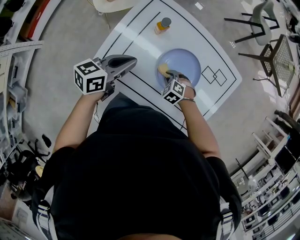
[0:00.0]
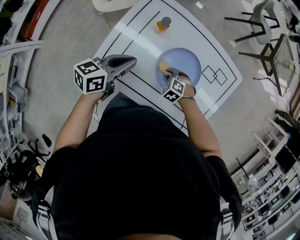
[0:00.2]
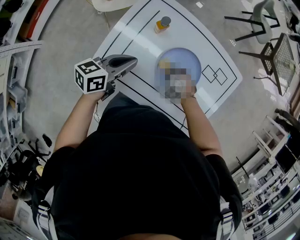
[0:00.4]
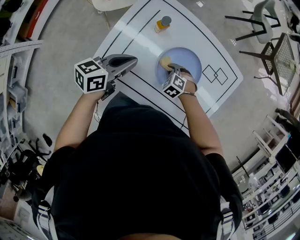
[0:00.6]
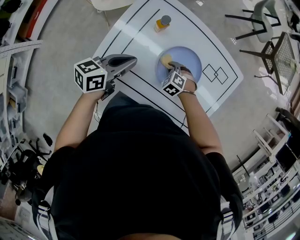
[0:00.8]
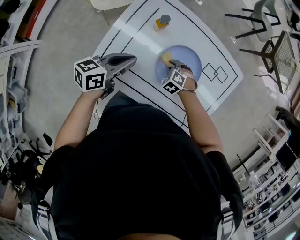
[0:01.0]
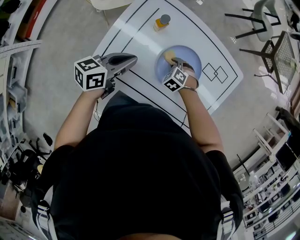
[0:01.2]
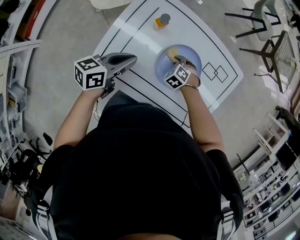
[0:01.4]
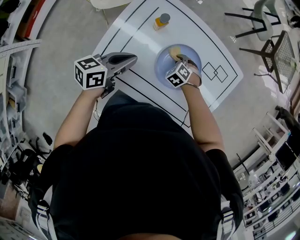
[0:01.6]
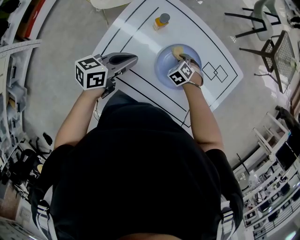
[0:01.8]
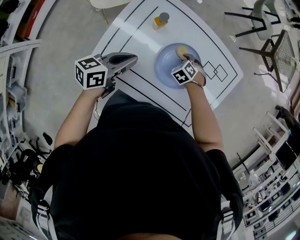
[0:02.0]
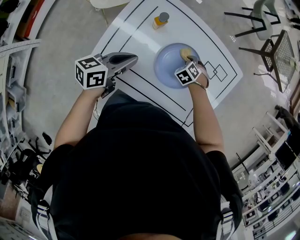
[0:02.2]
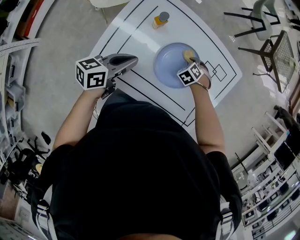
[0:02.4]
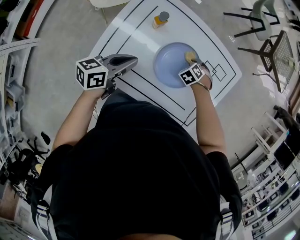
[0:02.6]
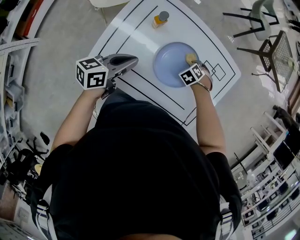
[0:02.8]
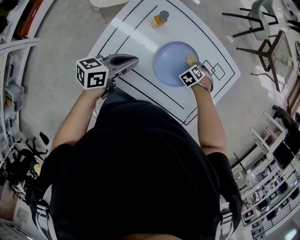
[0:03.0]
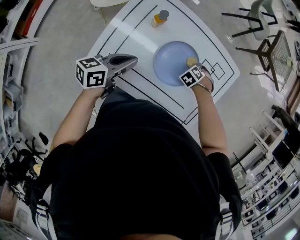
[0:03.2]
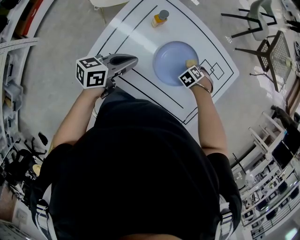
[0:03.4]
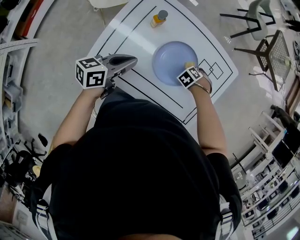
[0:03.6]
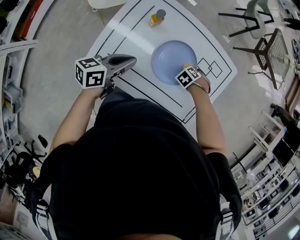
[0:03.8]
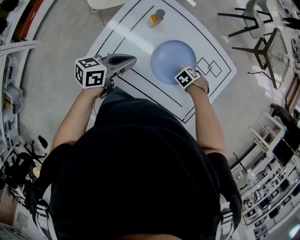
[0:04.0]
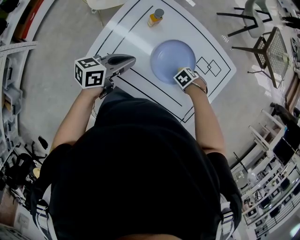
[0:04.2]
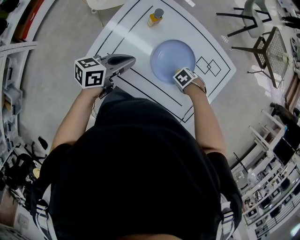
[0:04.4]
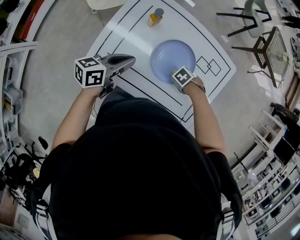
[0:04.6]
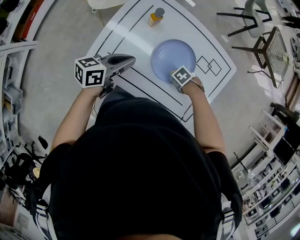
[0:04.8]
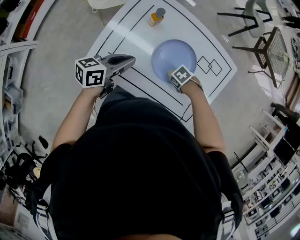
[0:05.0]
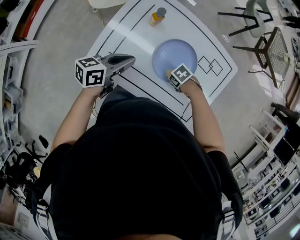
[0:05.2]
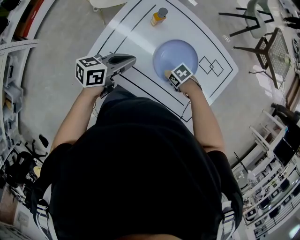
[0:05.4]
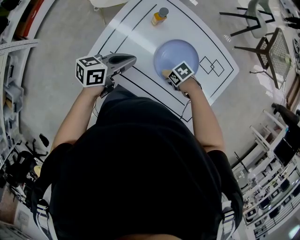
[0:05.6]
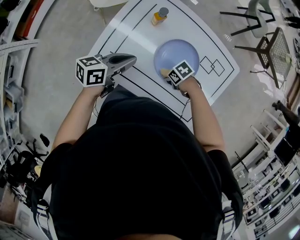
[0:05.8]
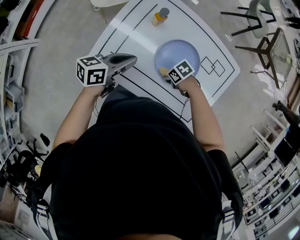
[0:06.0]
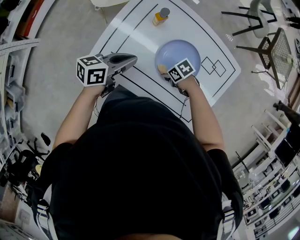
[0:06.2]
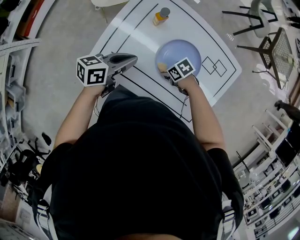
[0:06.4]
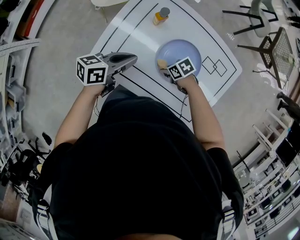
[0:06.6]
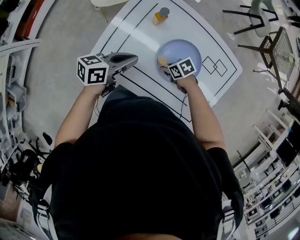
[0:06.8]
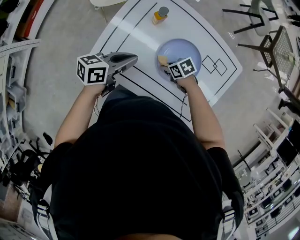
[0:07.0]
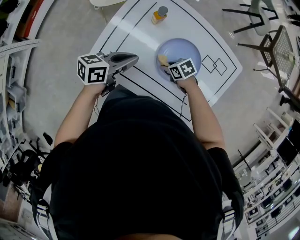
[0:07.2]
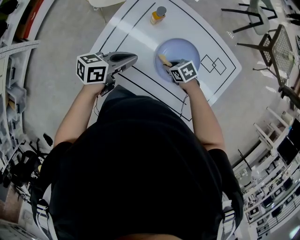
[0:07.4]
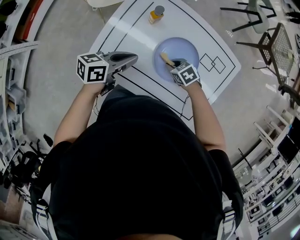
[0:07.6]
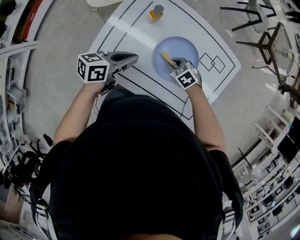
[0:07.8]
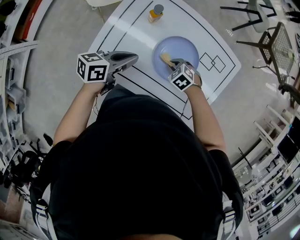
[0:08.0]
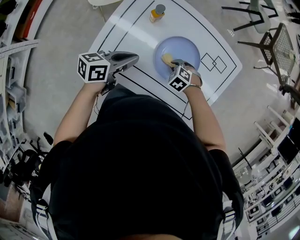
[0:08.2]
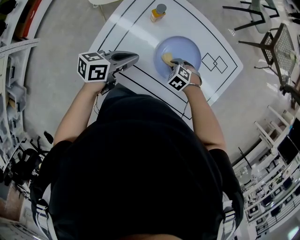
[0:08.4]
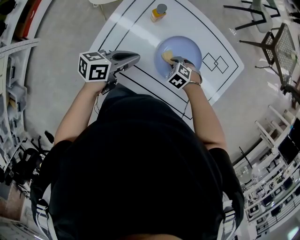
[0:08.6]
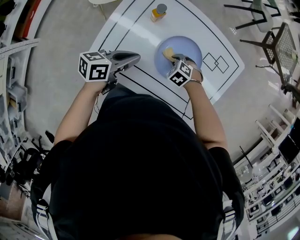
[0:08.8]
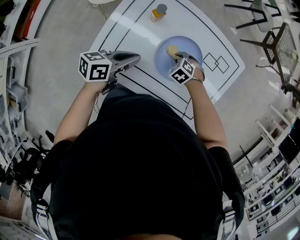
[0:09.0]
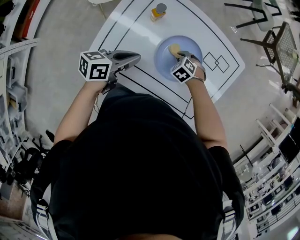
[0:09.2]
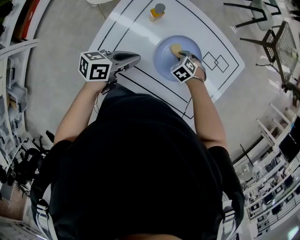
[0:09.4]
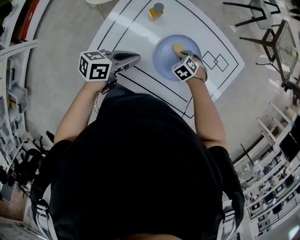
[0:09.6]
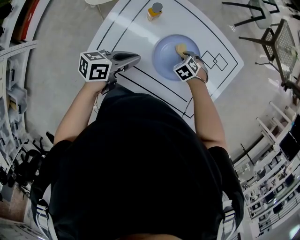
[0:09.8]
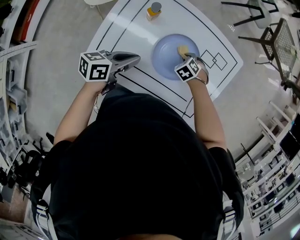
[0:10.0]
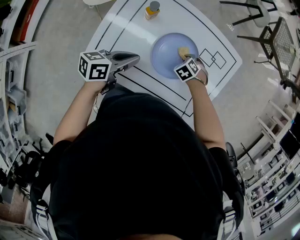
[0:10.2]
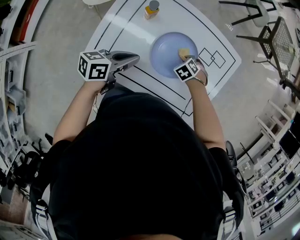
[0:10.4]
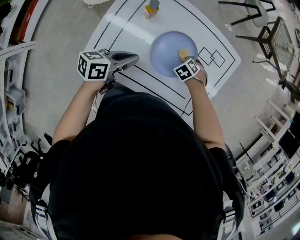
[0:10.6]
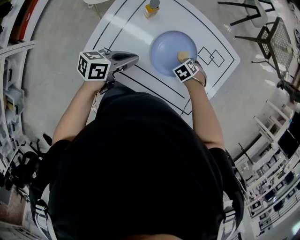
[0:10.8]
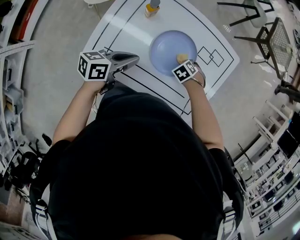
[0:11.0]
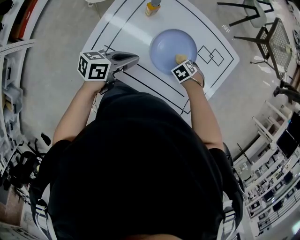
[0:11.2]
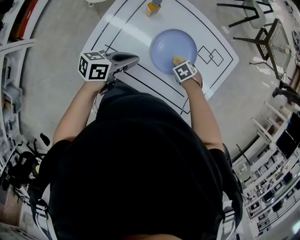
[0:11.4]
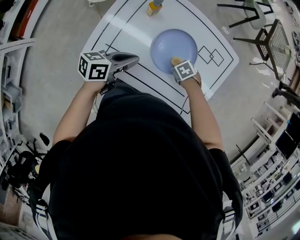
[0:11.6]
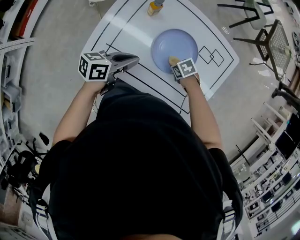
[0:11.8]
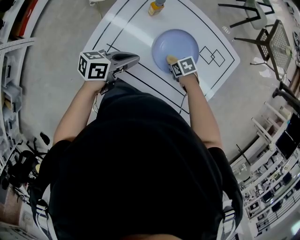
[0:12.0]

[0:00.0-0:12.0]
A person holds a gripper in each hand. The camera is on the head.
0:00.0 to 0:01.6: The right gripper shifts by roughly 10 cm.
0:01.6 to 0:03.0: The right gripper changes place by approximately 10 cm.
0:03.0 to 0:04.4: The right gripper ends up roughly 10 cm from where it was, and rotates approximately 20 degrees.
0:04.4 to 0:06.0: The right gripper ends up roughly 10 cm from where it was, and turns by roughly 30 degrees.
0:06.0 to 0:07.6: The right gripper ends up roughly 10 cm from where it was, and swivels roughly 30 degrees.
0:07.6 to 0:09.0: The right gripper shifts by some 5 cm, and changes its angle by roughly 30 degrees.
0:09.0 to 0:10.4: The right gripper changes place by roughly 10 cm.
0:10.4 to 0:12.0: The right gripper moves approximately 10 cm, and turns by some 40 degrees.

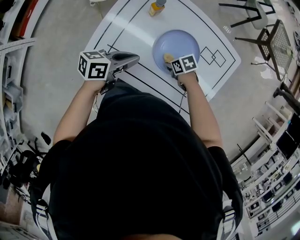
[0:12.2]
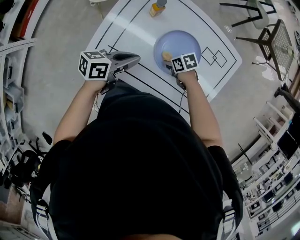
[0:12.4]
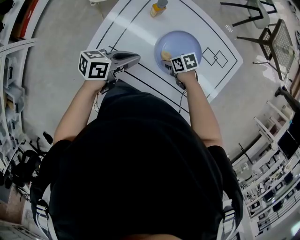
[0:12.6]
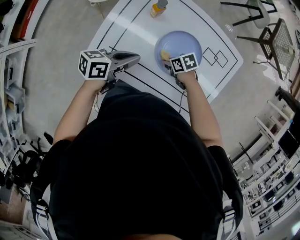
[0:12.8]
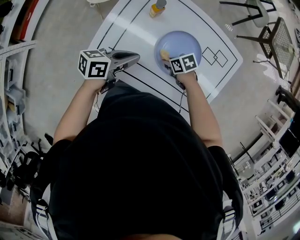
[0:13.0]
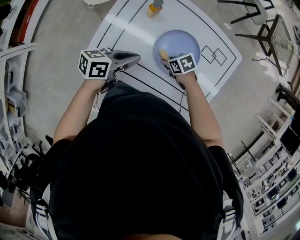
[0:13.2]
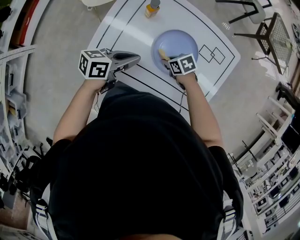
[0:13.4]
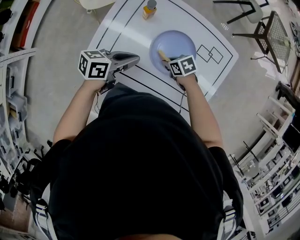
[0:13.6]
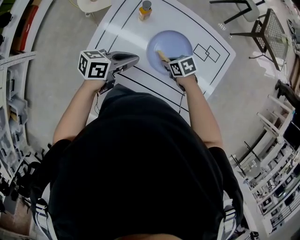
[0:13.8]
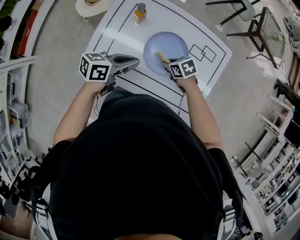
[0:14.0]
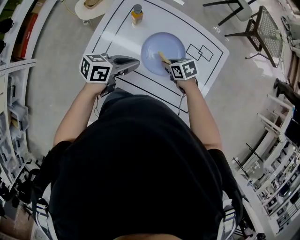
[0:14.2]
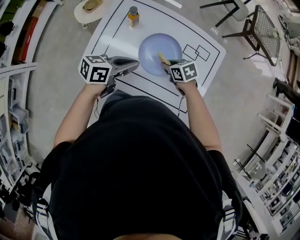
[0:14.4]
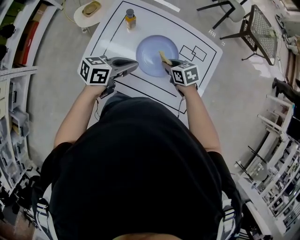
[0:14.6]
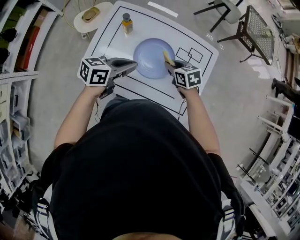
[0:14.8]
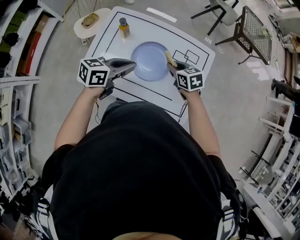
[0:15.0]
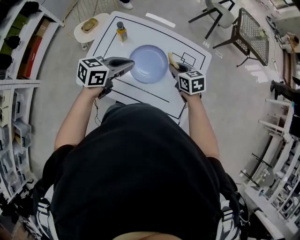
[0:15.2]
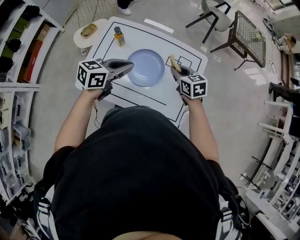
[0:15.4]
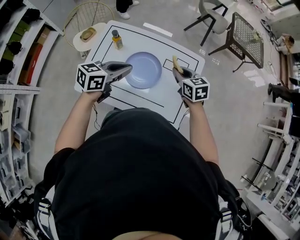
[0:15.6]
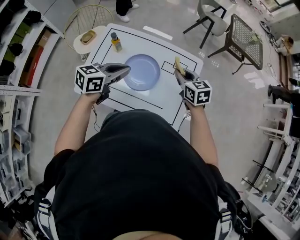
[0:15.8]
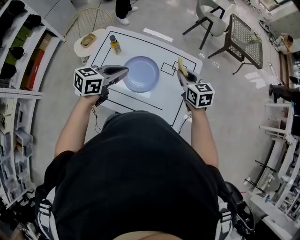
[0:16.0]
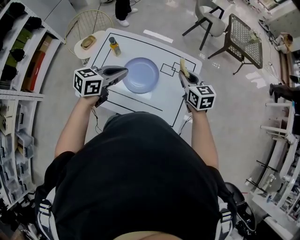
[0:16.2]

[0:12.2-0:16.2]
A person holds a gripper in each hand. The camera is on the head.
0:12.2 to 0:13.6: The grippers move only a little.
0:13.6 to 0:14.8: The right gripper is displaced upward by about 15 cm, and changes its angle by roughly 30 degrees. The left gripper shifts by about 10 cm.
0:14.8 to 0:16.2: The left gripper goes about 10 cm upward. Meanwhile the right gripper is displaced upward and to the right by about 20 cm, and turns by about 30 degrees.

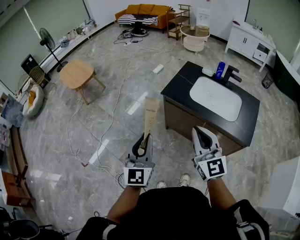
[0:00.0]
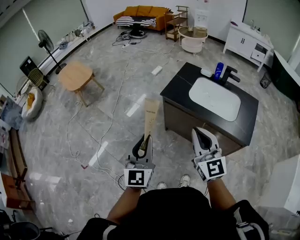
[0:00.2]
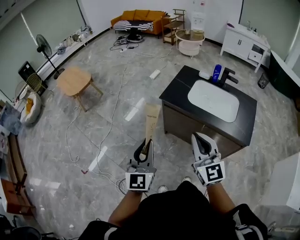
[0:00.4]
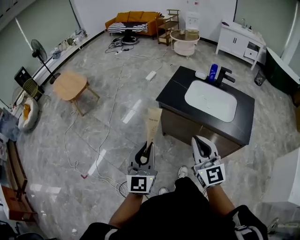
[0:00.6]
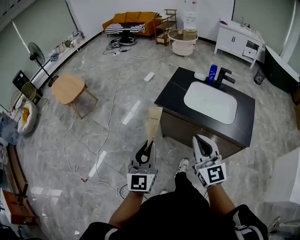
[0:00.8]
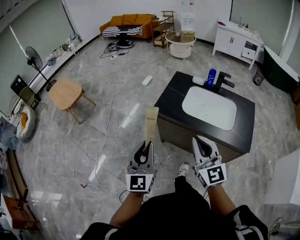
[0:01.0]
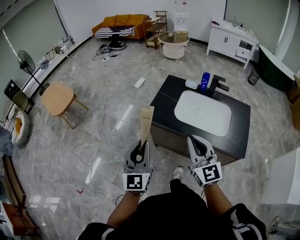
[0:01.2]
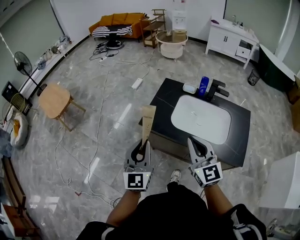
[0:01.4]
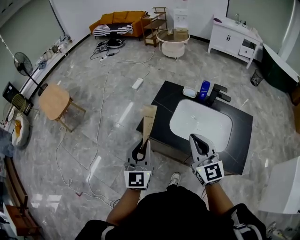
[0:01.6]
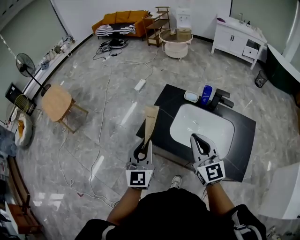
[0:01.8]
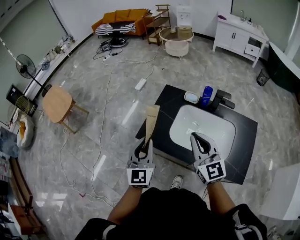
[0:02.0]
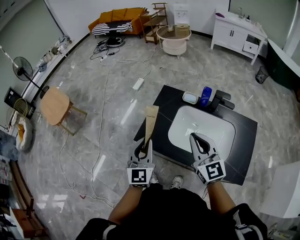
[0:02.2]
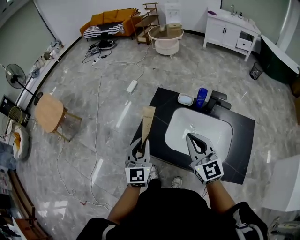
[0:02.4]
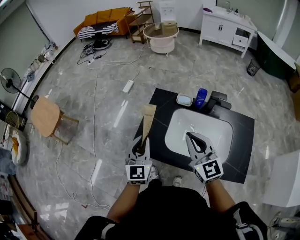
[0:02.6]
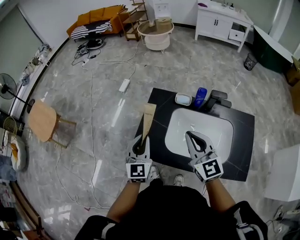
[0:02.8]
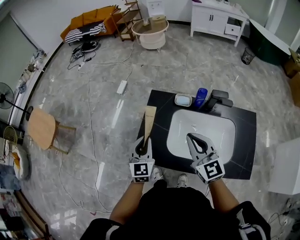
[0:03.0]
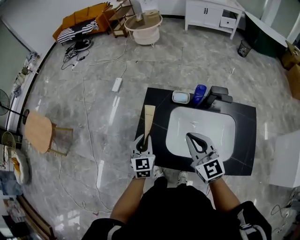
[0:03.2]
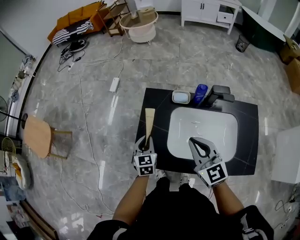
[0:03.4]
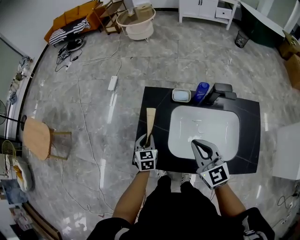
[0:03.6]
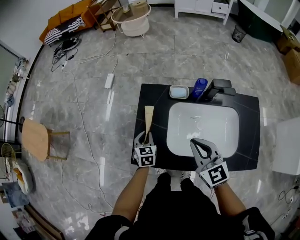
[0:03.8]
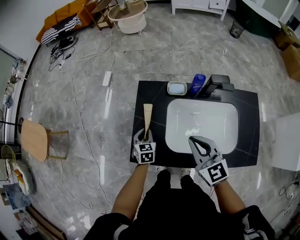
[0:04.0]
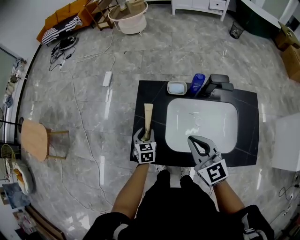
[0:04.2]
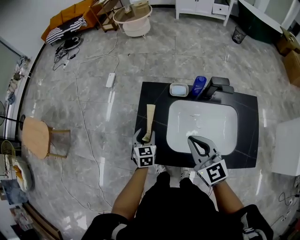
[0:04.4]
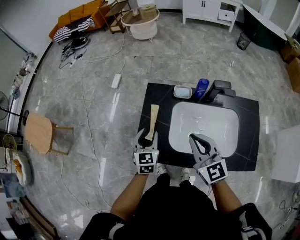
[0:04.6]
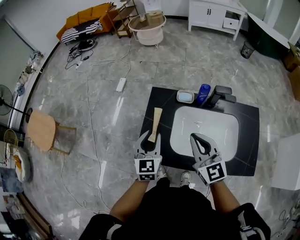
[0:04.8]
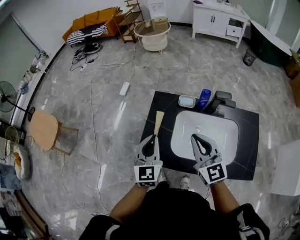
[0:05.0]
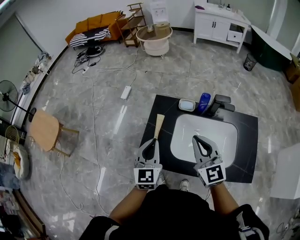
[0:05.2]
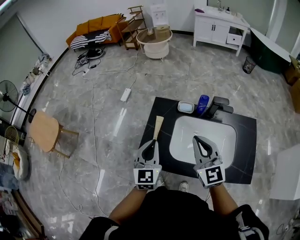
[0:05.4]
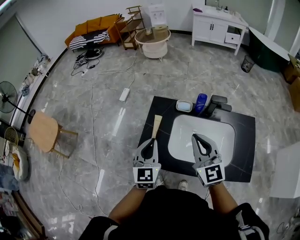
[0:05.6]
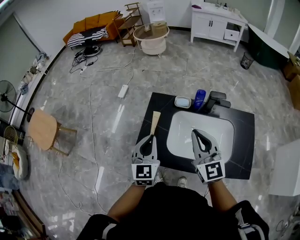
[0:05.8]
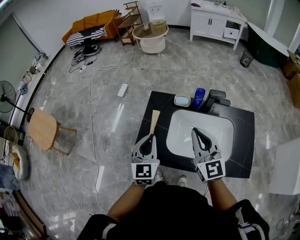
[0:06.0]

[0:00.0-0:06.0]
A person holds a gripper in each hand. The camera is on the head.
0:00.0 to 0:01.6: Both grippers move forward and to the right, approximately 30 cm.
0:01.6 to 0:03.0: The left gripper moves forward and downward, some 25 cm. Meanwhile the right gripper travels forward by some 20 cm.
0:03.0 to 0:04.4: The left gripper is displaced downward and forward by some 15 cm, rotates some 20 degrees, and opens.
0:04.4 to 0:06.0: The left gripper heads upward, covering roughly 20 cm, rotates approximately 20 degrees, and closes up; the right gripper is displaced upward by about 10 cm.

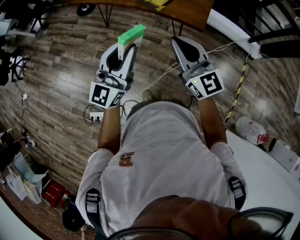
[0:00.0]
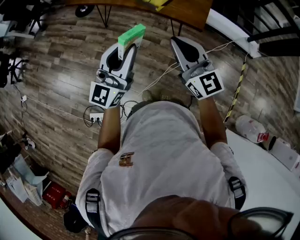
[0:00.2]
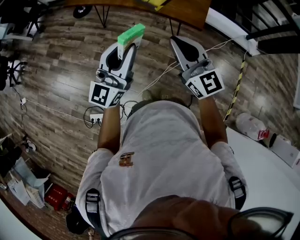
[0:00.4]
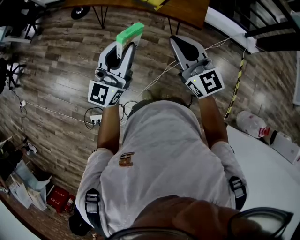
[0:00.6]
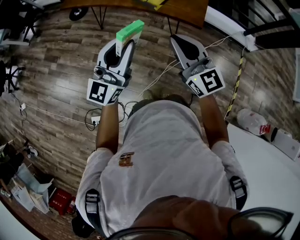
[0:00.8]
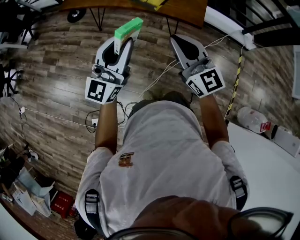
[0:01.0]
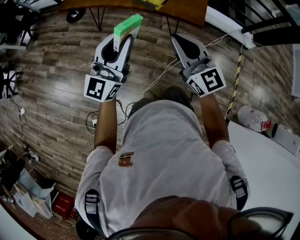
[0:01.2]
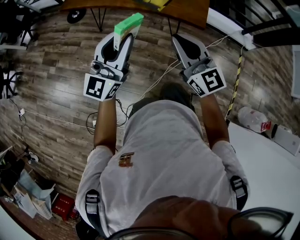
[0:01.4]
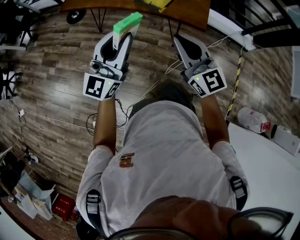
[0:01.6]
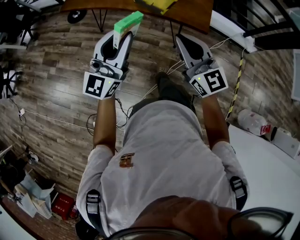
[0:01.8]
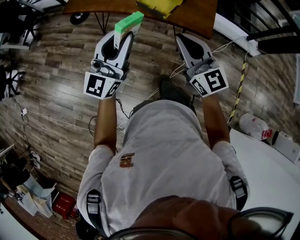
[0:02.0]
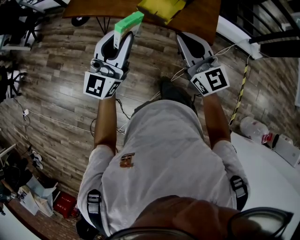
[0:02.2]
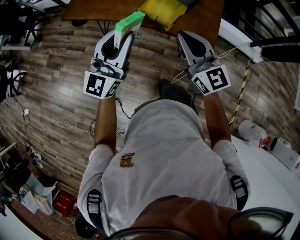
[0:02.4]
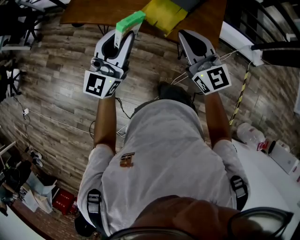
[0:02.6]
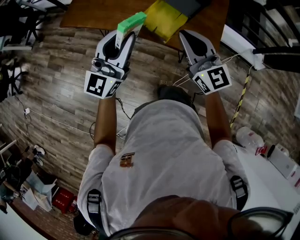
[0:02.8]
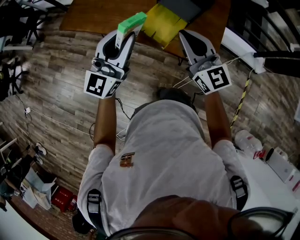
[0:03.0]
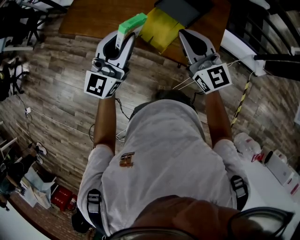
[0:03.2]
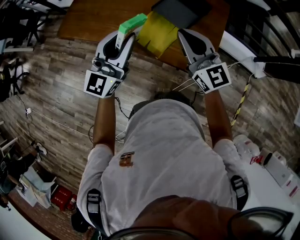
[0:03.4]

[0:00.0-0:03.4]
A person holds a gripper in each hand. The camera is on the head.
0:00.0 to 0:01.6: Both grippers move to the left and forward, some 10 cm.
0:01.6 to 0:03.4: The pair of grippers is taken forward, some 40 cm.
